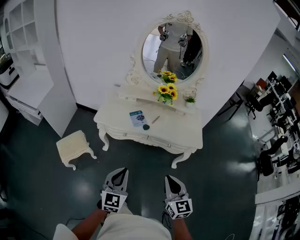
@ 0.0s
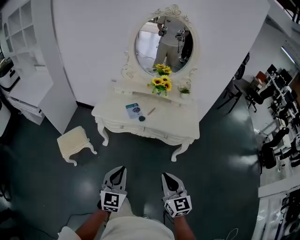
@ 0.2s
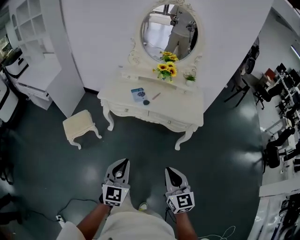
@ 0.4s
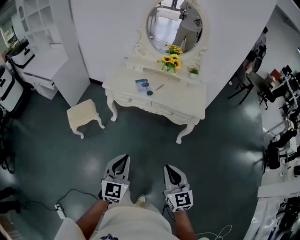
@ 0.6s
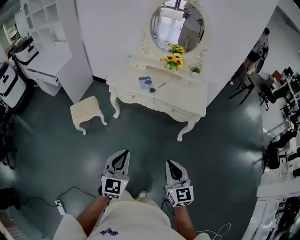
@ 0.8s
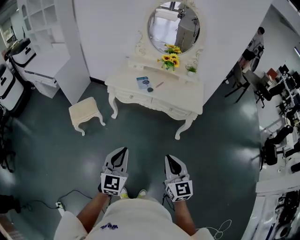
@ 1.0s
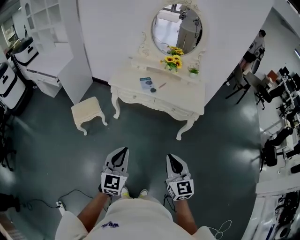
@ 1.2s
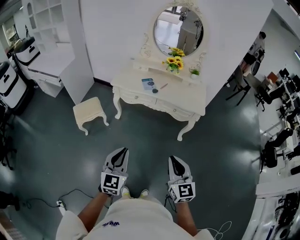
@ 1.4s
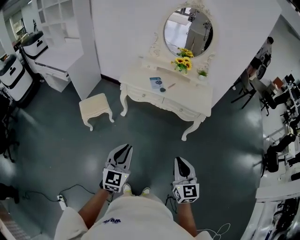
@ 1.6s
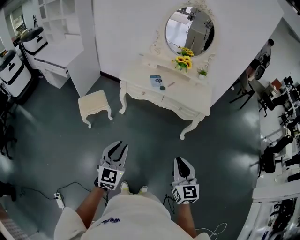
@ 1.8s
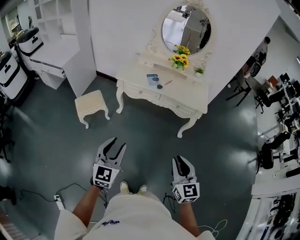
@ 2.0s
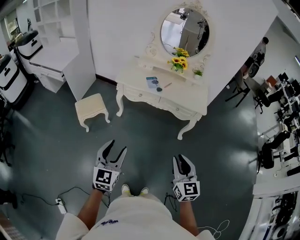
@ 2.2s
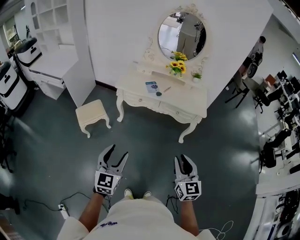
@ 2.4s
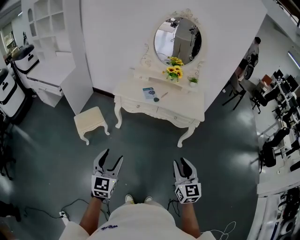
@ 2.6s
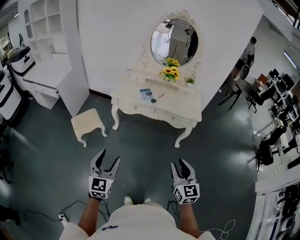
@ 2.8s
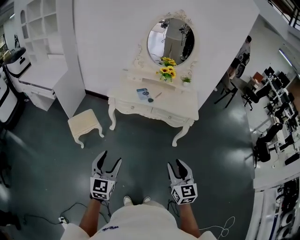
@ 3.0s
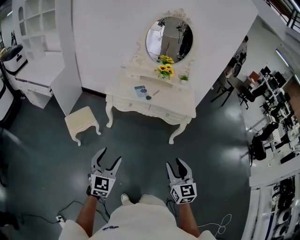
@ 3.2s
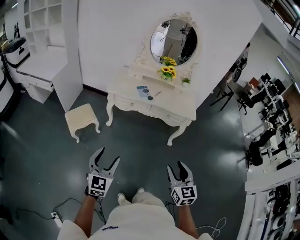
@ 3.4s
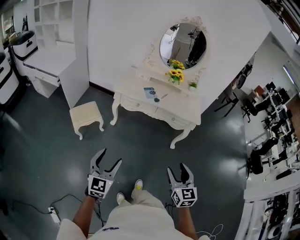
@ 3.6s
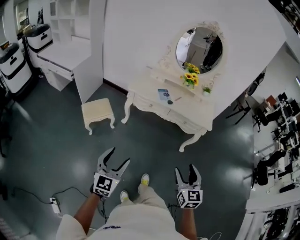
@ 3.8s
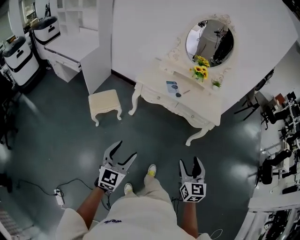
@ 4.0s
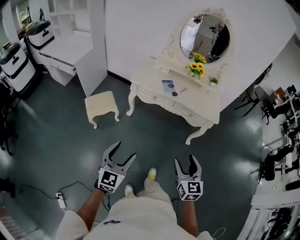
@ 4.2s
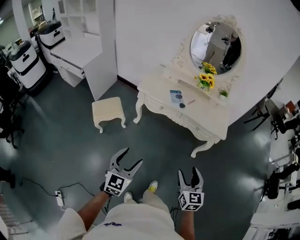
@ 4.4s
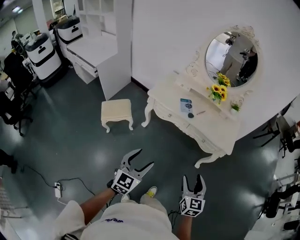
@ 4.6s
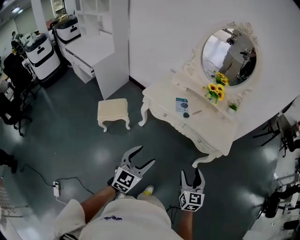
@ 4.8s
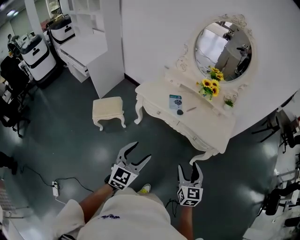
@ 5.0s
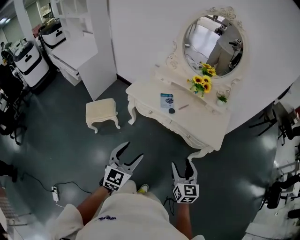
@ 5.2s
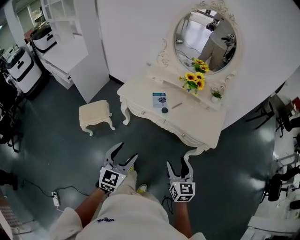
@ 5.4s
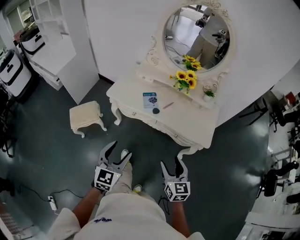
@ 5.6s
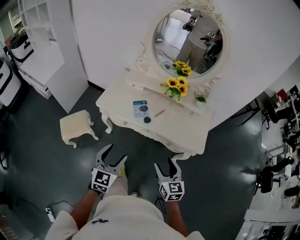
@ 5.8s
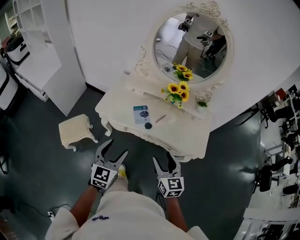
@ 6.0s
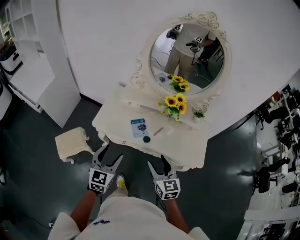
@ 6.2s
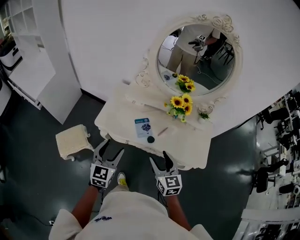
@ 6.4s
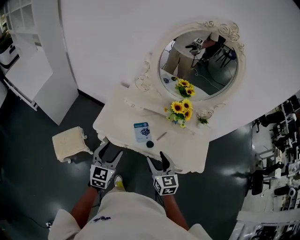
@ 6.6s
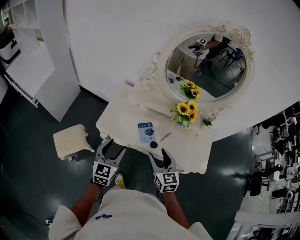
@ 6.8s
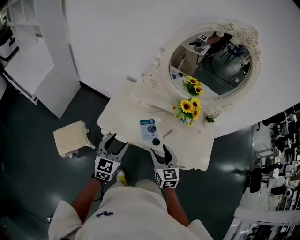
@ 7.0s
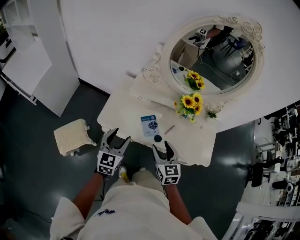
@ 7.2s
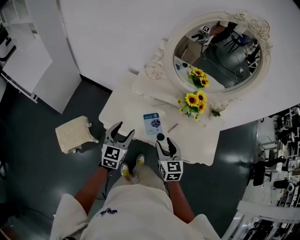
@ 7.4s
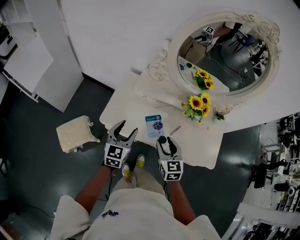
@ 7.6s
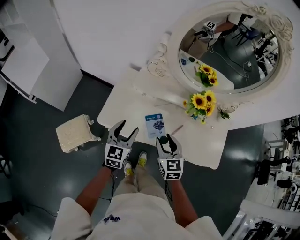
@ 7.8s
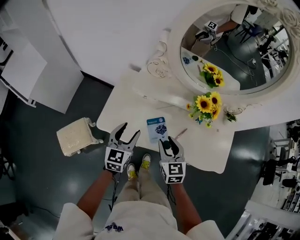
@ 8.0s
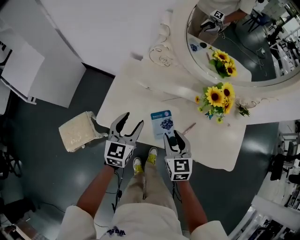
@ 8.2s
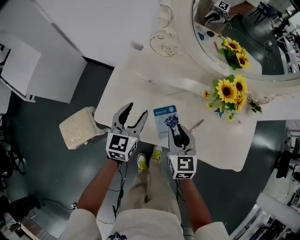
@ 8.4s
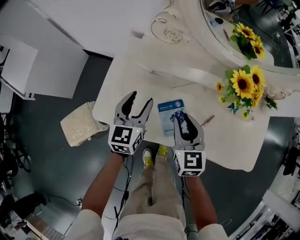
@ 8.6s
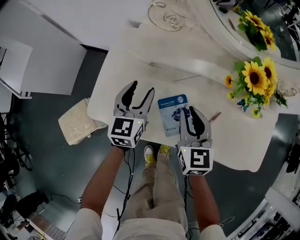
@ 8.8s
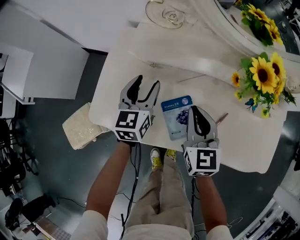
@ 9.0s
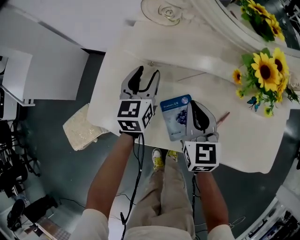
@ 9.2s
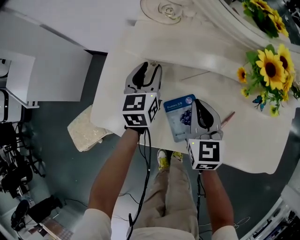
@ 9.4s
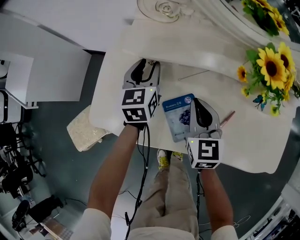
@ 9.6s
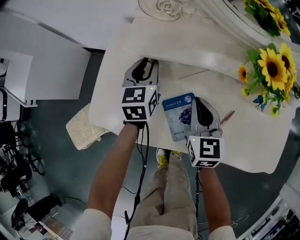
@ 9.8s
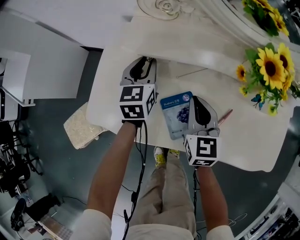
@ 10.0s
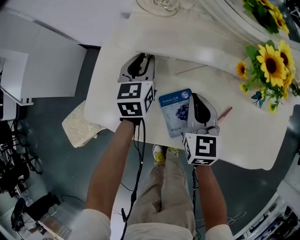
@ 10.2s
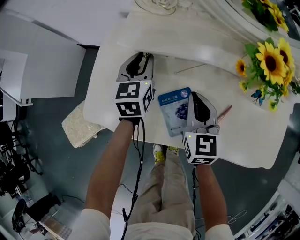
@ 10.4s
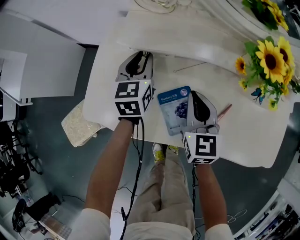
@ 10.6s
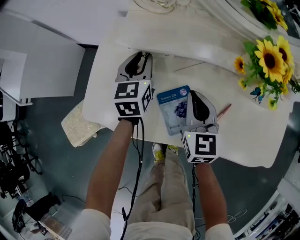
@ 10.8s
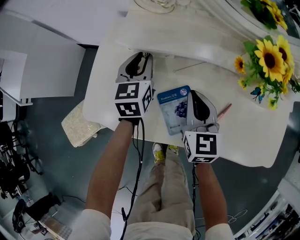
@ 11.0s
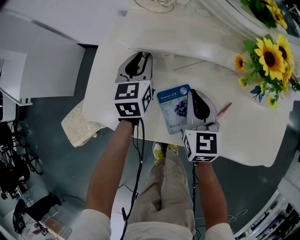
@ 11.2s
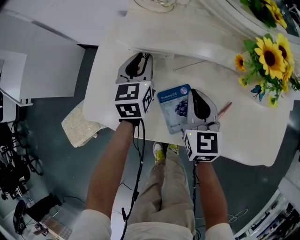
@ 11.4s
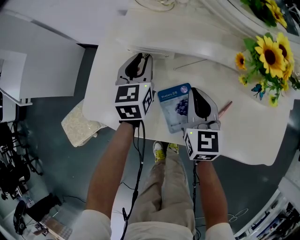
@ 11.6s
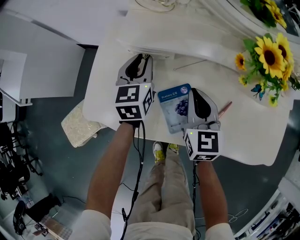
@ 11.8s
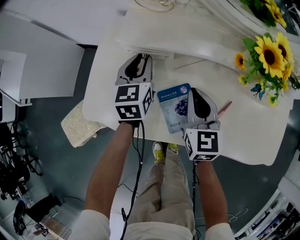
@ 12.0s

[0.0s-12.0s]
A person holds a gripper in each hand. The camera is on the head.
0.0s to 1.6s: The two grippers go some 25 cm backward.
1.6s to 3.0s: The left gripper moves to the left, some 10 cm, and opens its fingers, while the right gripper opens.
3.0s to 4.4s: The right gripper travels forward and downward by roughly 10 cm, and opens up. Meanwhile the left gripper travels forward by roughly 5 cm.
4.4s to 6.0s: Both grippers travel together forward, about 35 cm.
6.0s to 7.6s: The left gripper travels forward by about 25 cm. Meanwhile the right gripper is displaced forward and to the left by approximately 25 cm.
7.6s to 9.0s: The grippers both shift downward and forward by about 25 cm. The right gripper closes its fingers.
9.0s to 10.4s: The left gripper heads forward, covering about 5 cm, and closes its fingers.
10.4s to 12.0s: The grippers stay close to where they were, moving slightly.

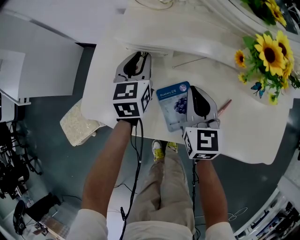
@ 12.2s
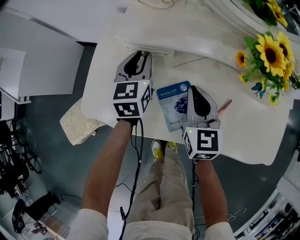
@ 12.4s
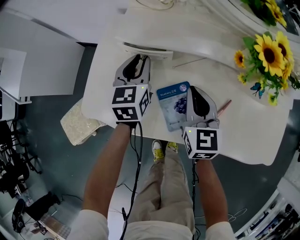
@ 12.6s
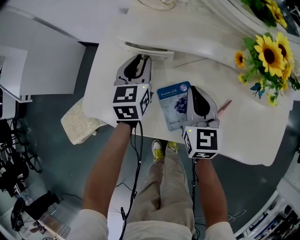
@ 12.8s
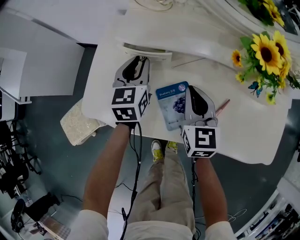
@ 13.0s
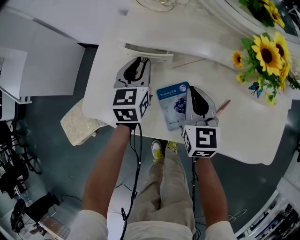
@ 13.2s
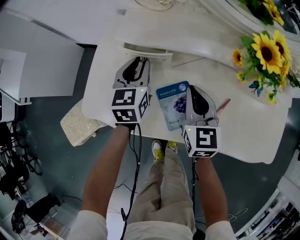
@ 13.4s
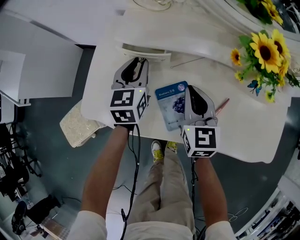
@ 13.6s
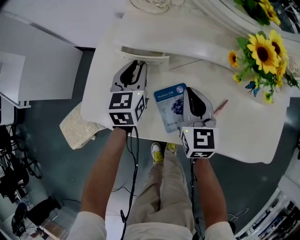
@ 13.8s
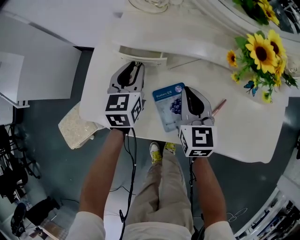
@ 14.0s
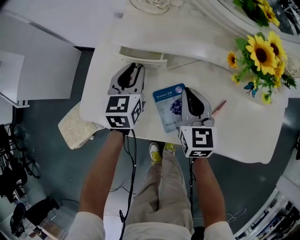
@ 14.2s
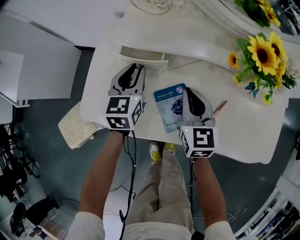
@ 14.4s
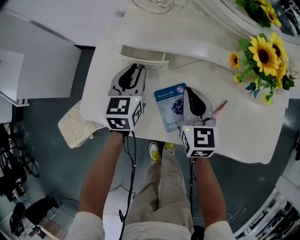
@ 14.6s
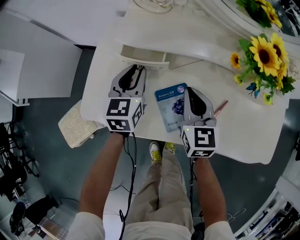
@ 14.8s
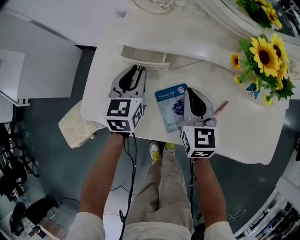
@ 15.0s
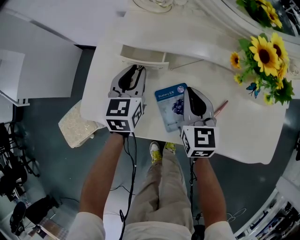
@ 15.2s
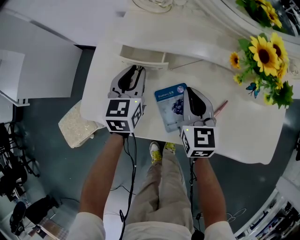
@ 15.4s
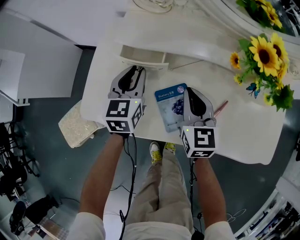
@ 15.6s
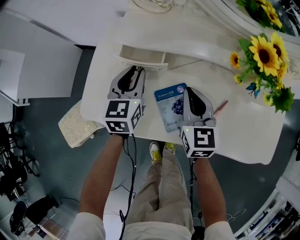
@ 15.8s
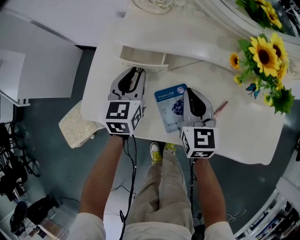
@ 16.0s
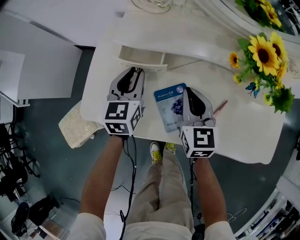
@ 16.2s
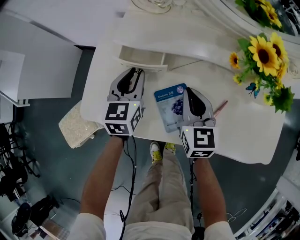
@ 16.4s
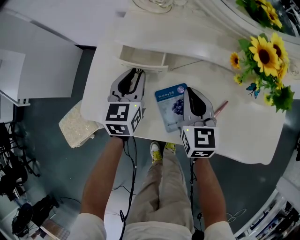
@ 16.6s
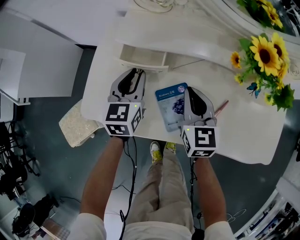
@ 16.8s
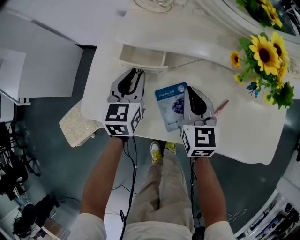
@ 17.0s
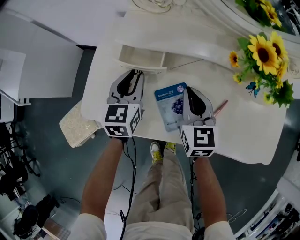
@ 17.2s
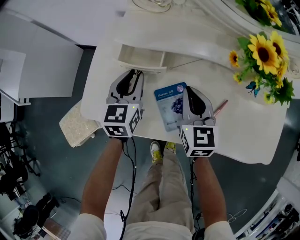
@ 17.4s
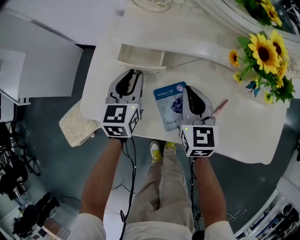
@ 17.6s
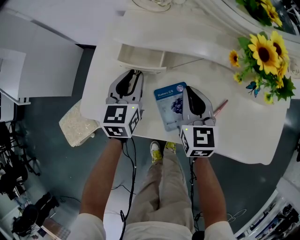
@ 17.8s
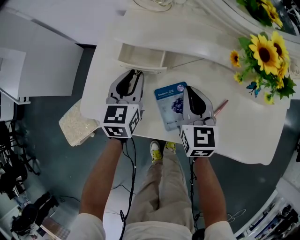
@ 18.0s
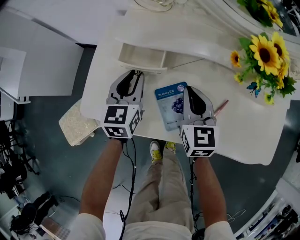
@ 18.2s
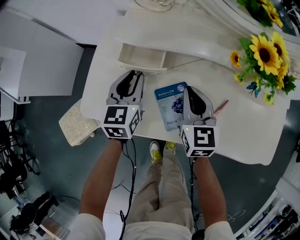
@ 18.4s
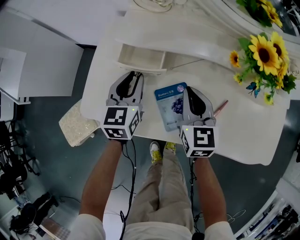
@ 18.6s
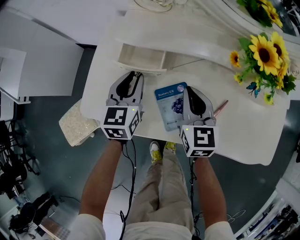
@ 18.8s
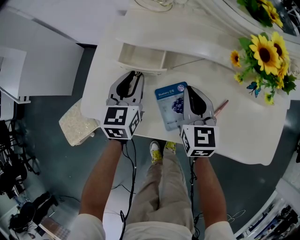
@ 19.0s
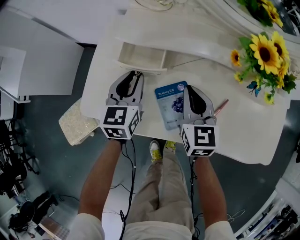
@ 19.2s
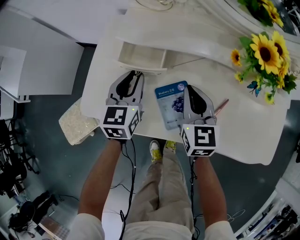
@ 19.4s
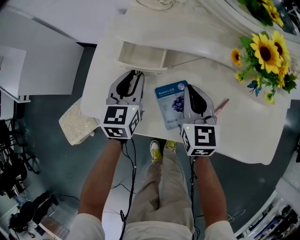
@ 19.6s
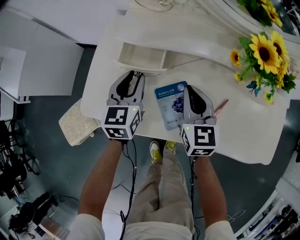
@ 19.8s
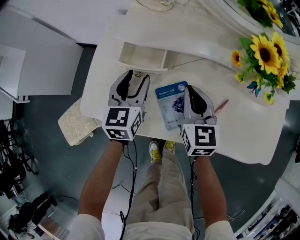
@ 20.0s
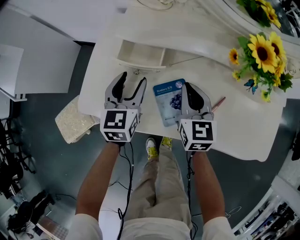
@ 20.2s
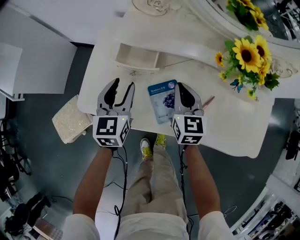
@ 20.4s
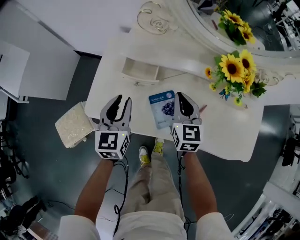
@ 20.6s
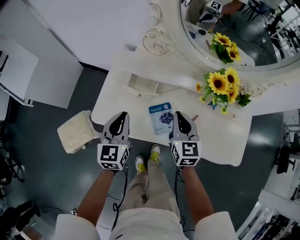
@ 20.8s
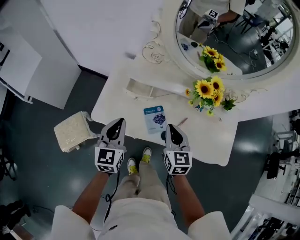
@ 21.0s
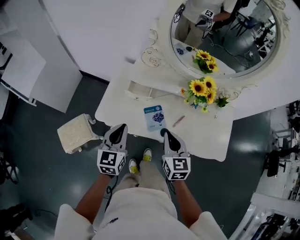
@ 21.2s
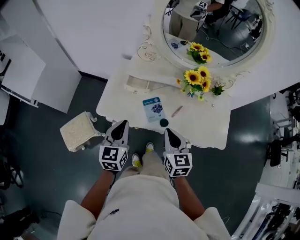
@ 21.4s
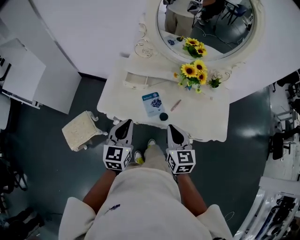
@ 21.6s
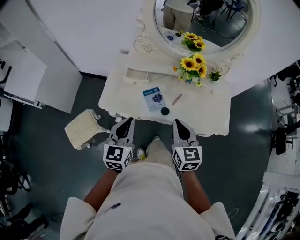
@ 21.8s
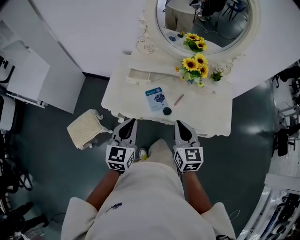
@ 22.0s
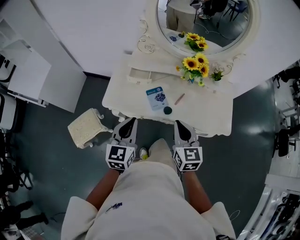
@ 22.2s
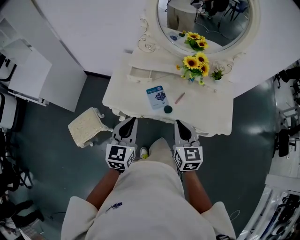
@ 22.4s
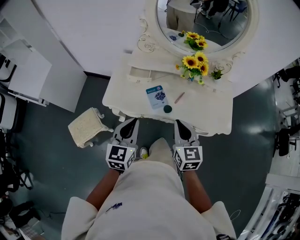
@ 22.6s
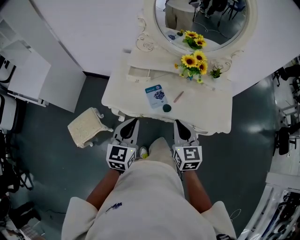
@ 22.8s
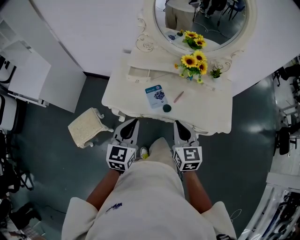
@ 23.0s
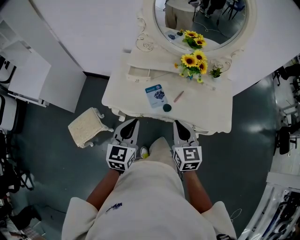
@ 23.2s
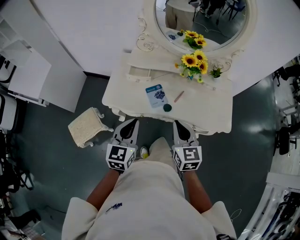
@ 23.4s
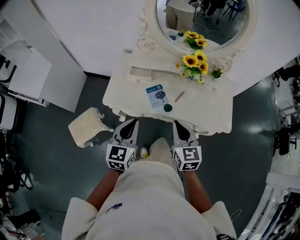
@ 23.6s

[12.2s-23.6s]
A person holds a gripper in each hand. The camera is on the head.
12.2s to 15.0s: The grippers stay close to where they were, moving slightly.
15.0s to 16.4s: The two grippers keep their place.
16.4s to 17.8s: Both grippers stay put.
17.8s to 19.4s: Neither gripper changes place.
19.4s to 20.8s: The two grippers go about 15 cm upward and backward. The left gripper opens, then closes again.
20.8s to 22.2s: The two grippers go approximately 25 cm backward and upward.
22.2s to 23.6s: There are only small adjustments of the grippers.

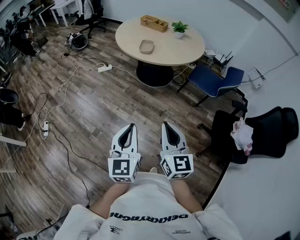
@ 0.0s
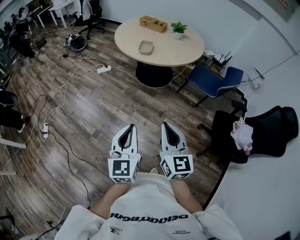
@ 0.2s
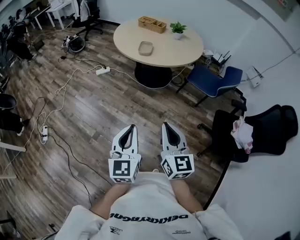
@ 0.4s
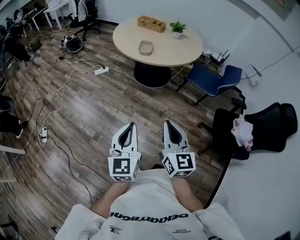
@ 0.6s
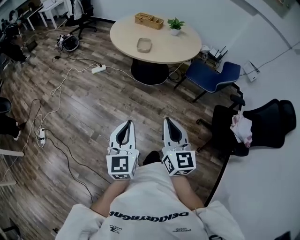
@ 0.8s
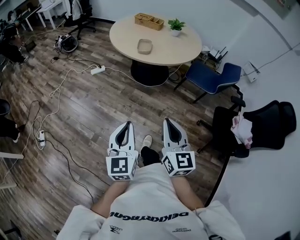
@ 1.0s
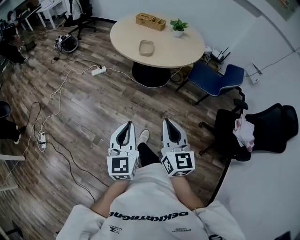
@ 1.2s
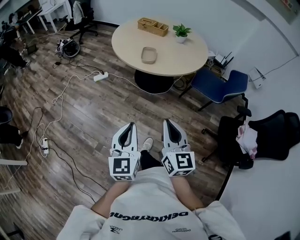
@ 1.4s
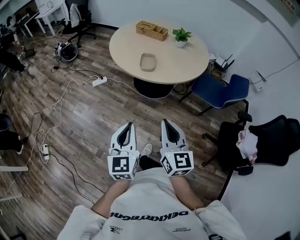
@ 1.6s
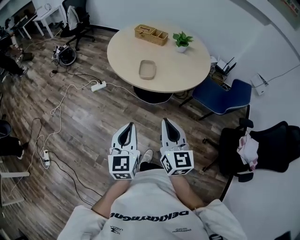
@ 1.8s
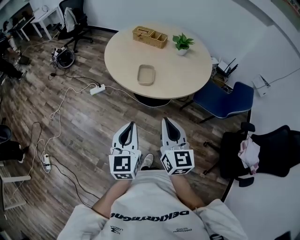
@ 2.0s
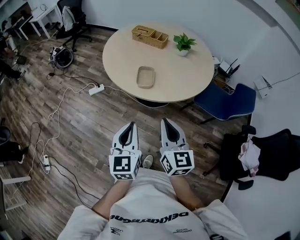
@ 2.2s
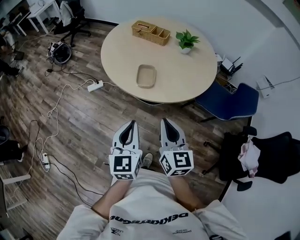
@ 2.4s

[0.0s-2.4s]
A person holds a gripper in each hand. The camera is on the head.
0.0s to 1.2s: Both grippers move forward and to the left, roughly 15 cm.
1.2s to 2.4s: The grippers both shift forward by some 40 cm.
